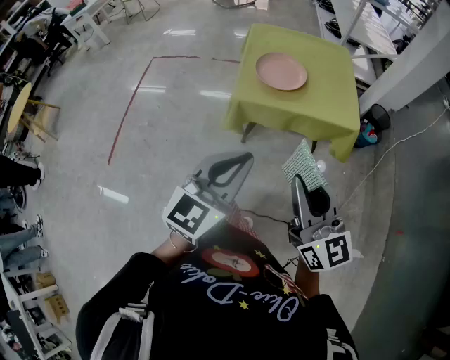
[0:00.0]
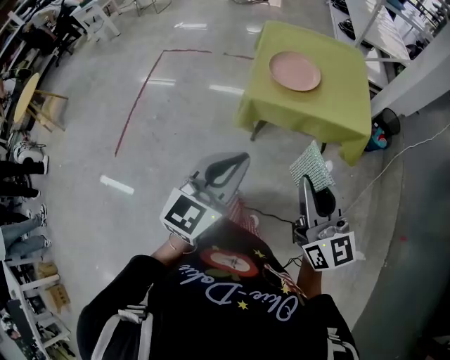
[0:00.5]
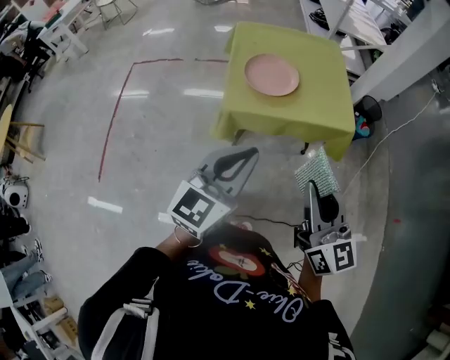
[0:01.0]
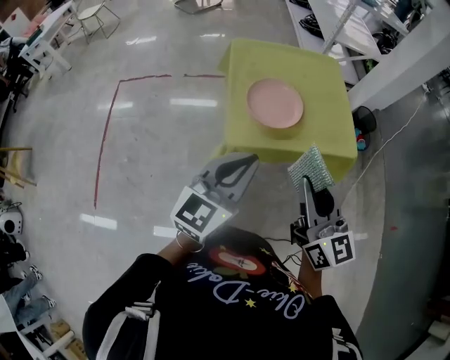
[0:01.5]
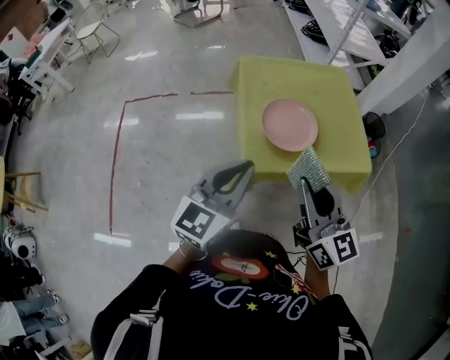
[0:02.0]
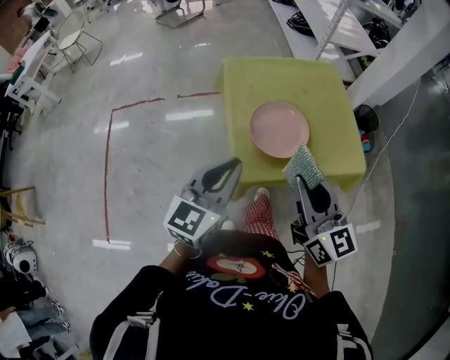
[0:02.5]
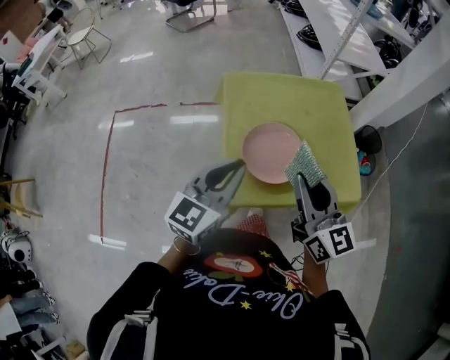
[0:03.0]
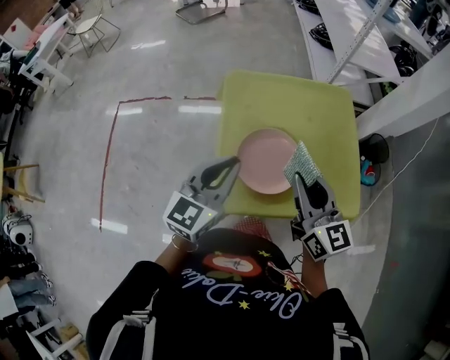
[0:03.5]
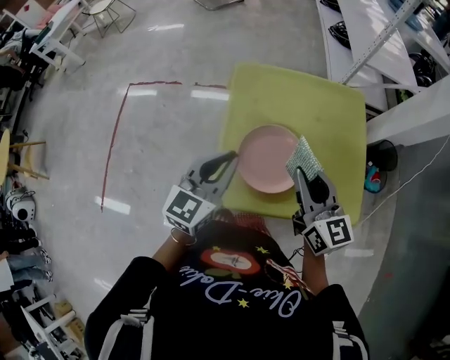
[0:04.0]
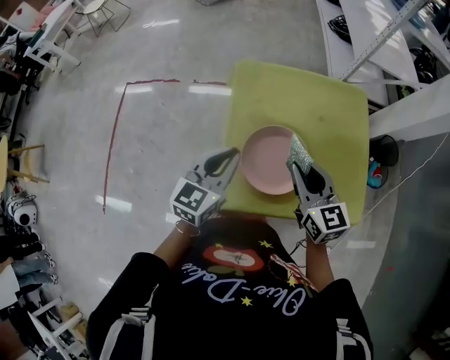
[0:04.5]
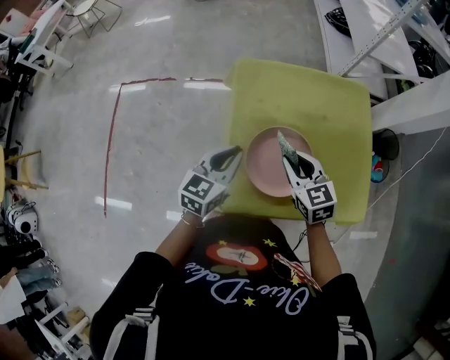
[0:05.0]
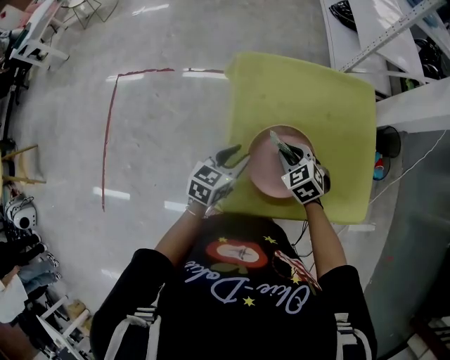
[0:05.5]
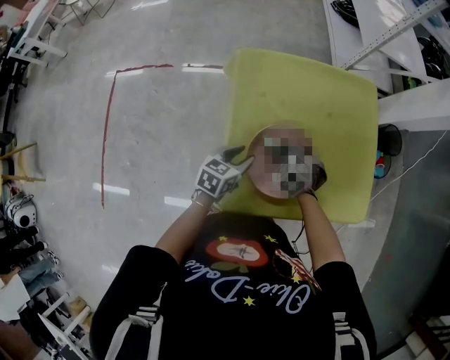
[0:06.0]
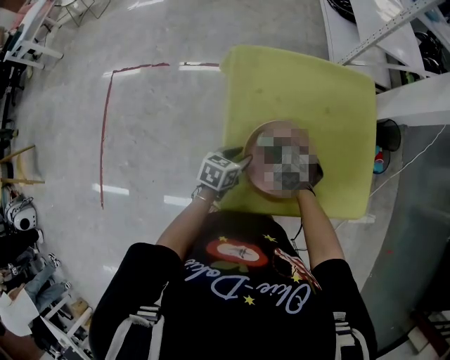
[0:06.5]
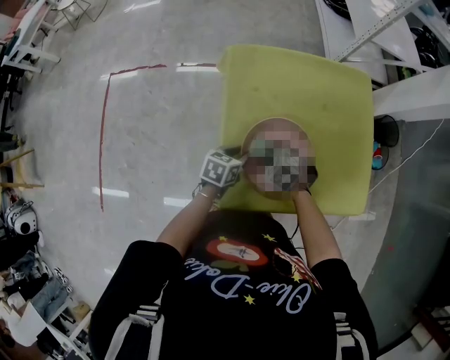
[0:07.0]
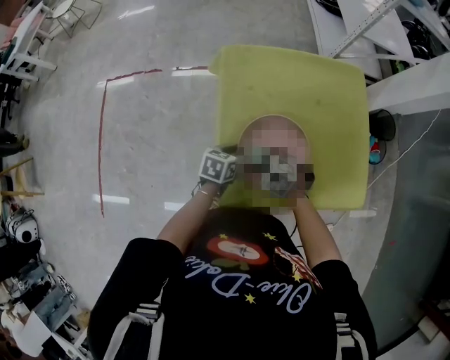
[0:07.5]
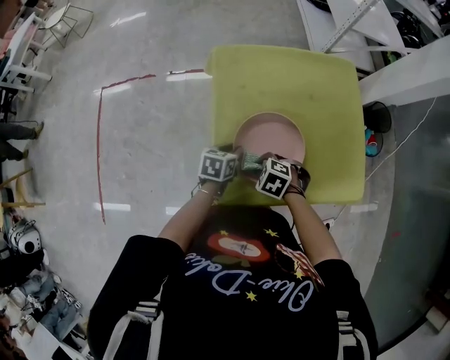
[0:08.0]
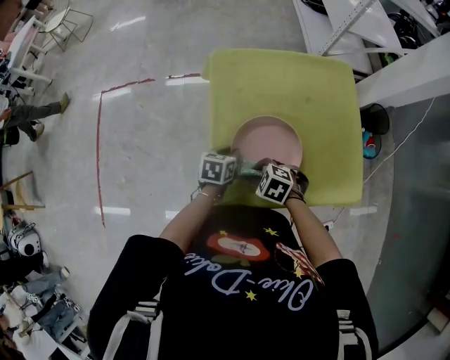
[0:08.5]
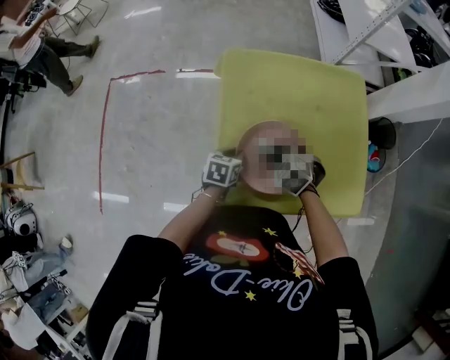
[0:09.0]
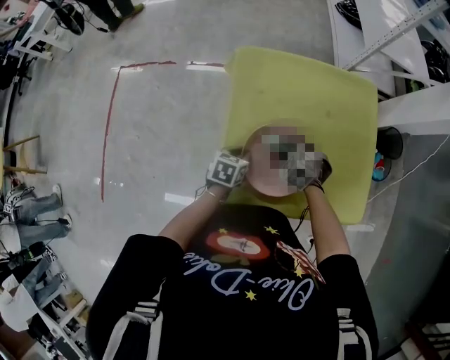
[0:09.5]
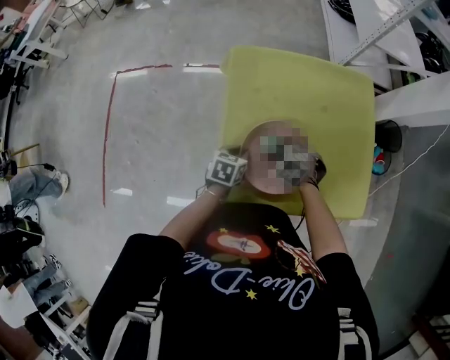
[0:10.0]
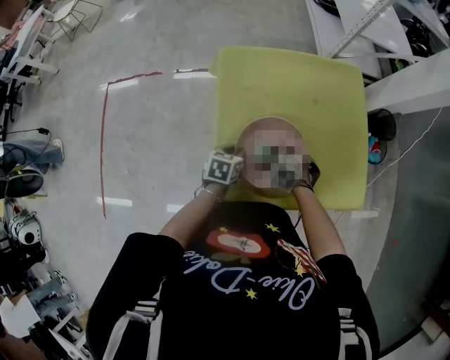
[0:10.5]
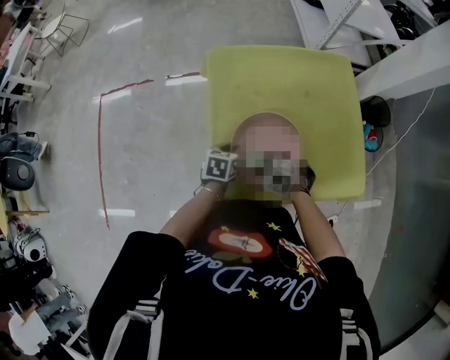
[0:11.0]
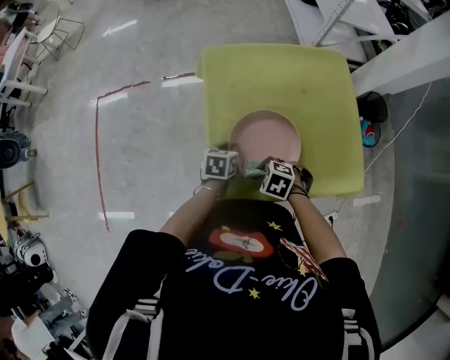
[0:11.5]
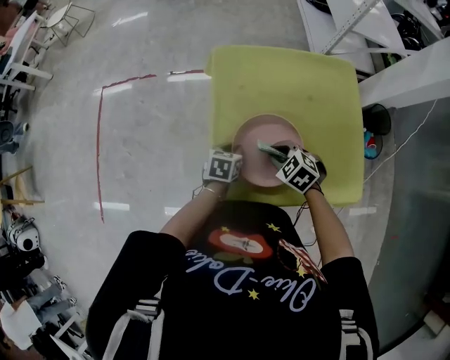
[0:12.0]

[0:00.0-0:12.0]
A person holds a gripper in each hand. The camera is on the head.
0:00.0 to 0:02.0: The grippers both shift forward and to the left by about 35 cm.
0:02.0 to 0:04.0: The right gripper heads forward and to the right, covering roughly 30 cm; the left gripper shifts some 20 cm forward.
0:04.0 to 0:06.0: Both grippers move downward, roughly 25 cm. The left gripper changes its angle by about 40 degrees, and opens up. Meanwhile the right gripper points its fingers roughly 60 degrees further downward.
0:06.0 to 0:08.0: The right gripper changes place by approximately 10 cm. Meanwhile the left gripper shifts some 5 cm downward.
0:08.0 to 0:10.0: The right gripper shifts by approximately 10 cm.

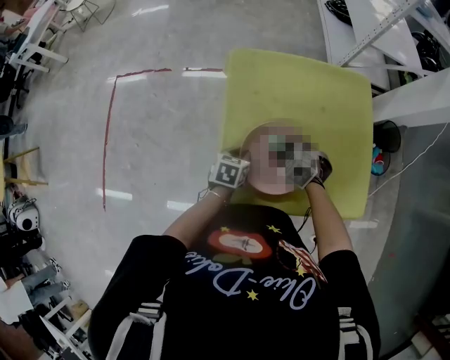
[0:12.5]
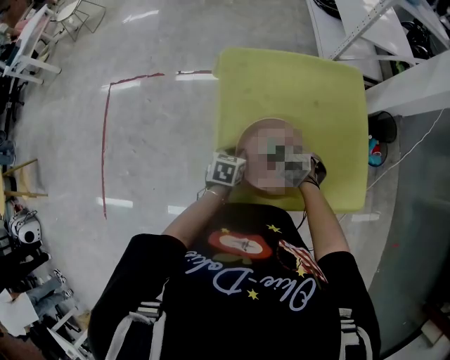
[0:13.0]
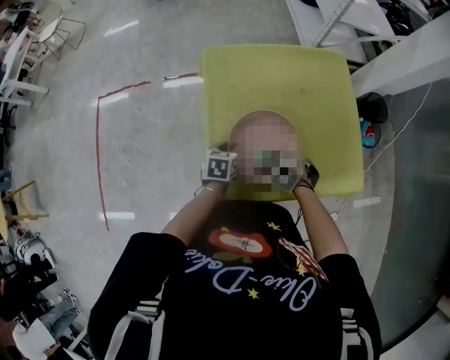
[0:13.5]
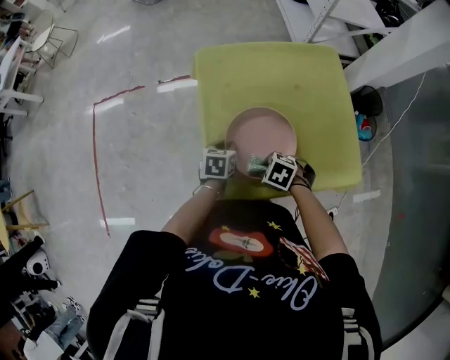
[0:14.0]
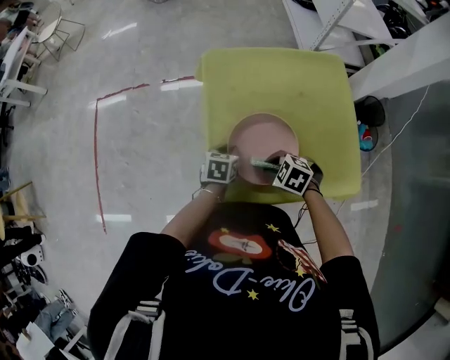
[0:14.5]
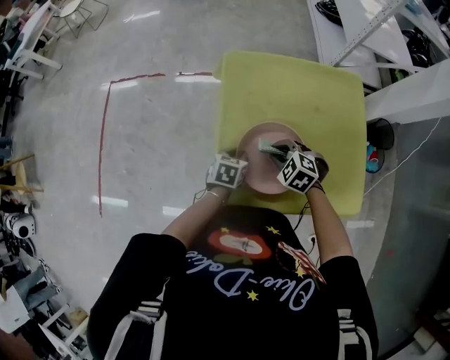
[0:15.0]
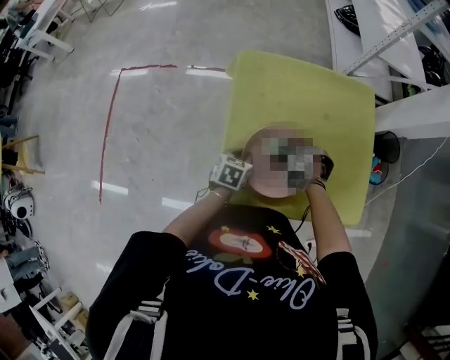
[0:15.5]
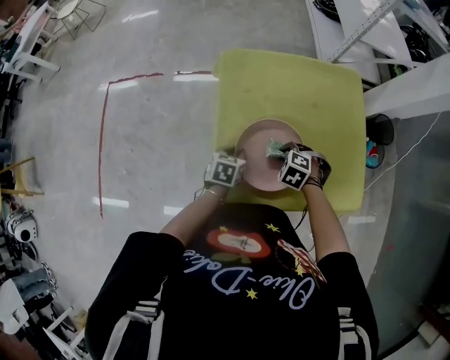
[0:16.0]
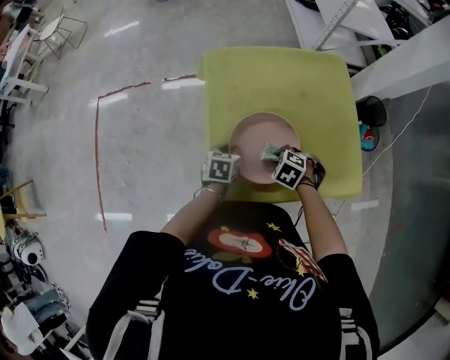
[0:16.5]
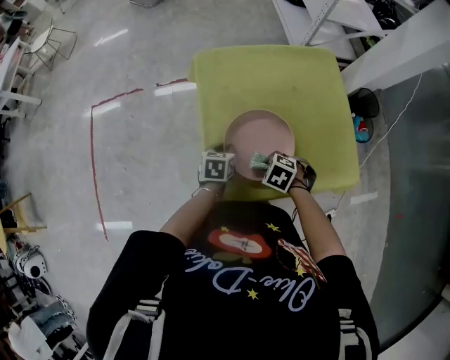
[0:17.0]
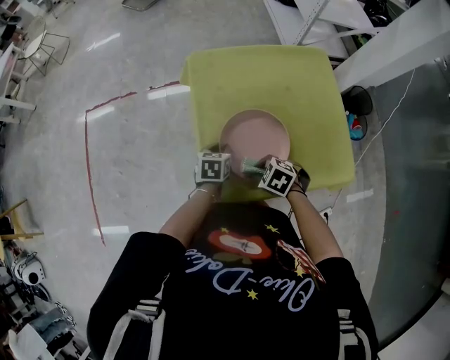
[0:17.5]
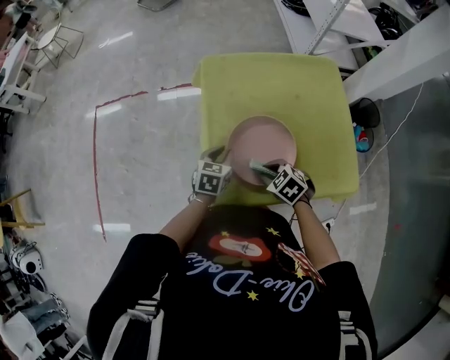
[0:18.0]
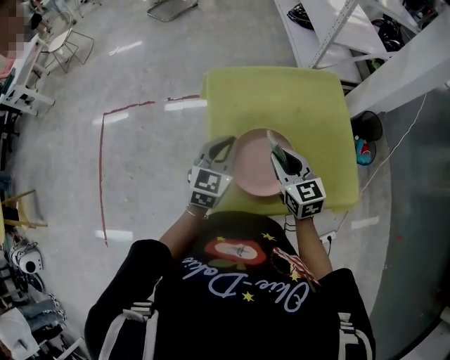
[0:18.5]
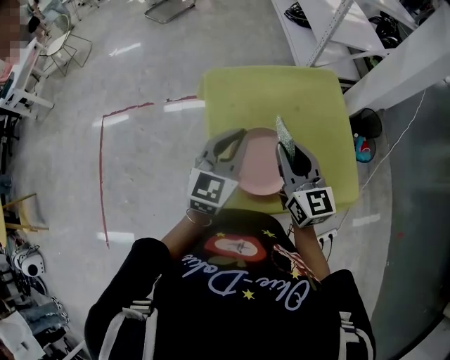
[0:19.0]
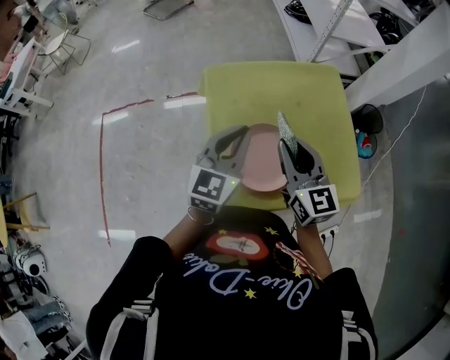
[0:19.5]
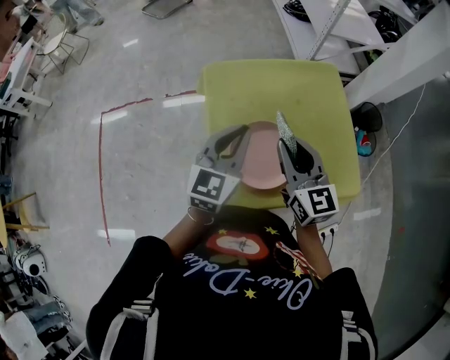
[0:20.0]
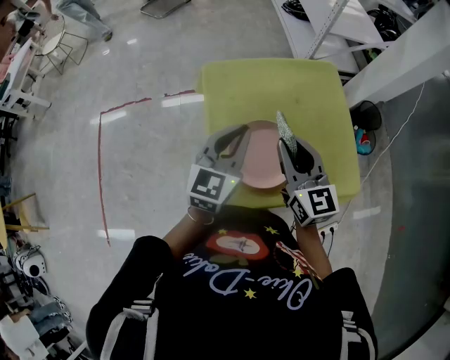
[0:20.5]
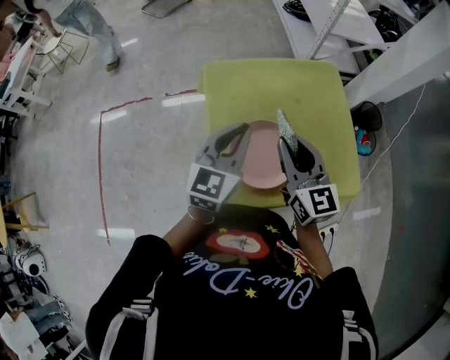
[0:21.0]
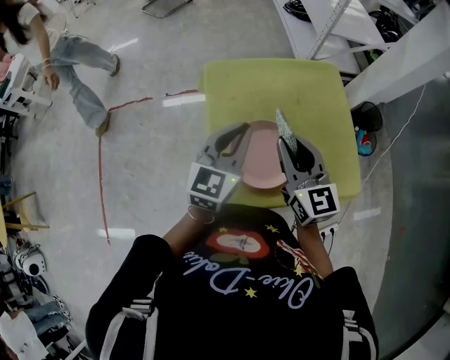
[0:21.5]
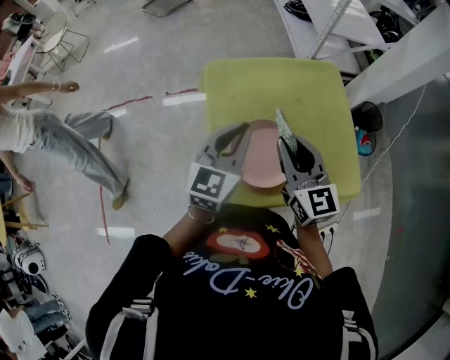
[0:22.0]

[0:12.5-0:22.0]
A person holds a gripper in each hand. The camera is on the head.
0:12.5 to 0:14.5: The right gripper ends up some 10 cm from where it was.
0:16.5 to 0:18.0: The right gripper changes place by some 5 cm, and swivels about 20 degrees.
0:18.0 to 0:20.0: The grippers both shift upward by approximately 25 cm. The right gripper angles its fingers upward, by approximately 50 degrees. Meanwhile the left gripper tilts its fingers roughly 30 degrees upward.
0:20.0 to 0:22.0: The two grippers keep their place.

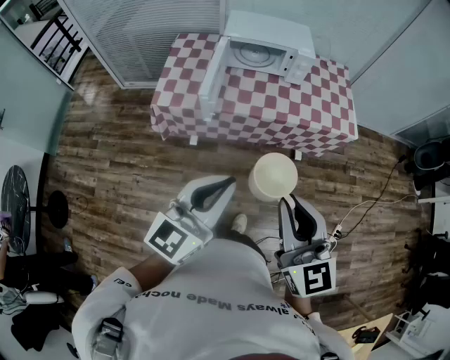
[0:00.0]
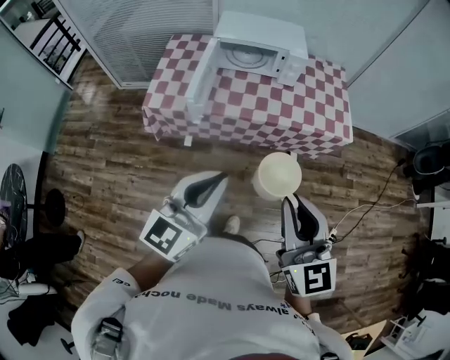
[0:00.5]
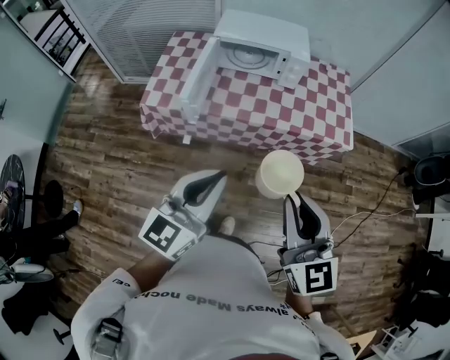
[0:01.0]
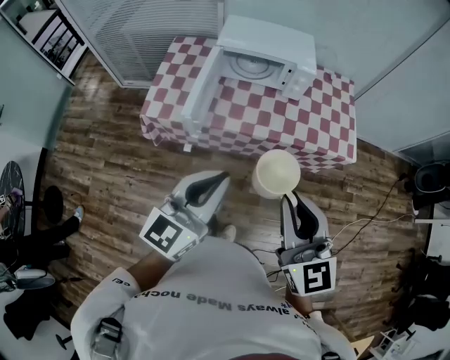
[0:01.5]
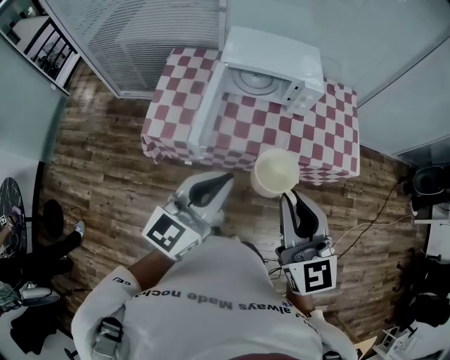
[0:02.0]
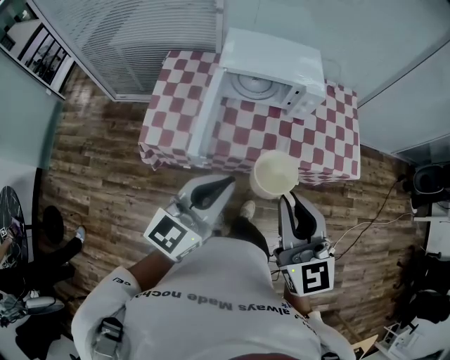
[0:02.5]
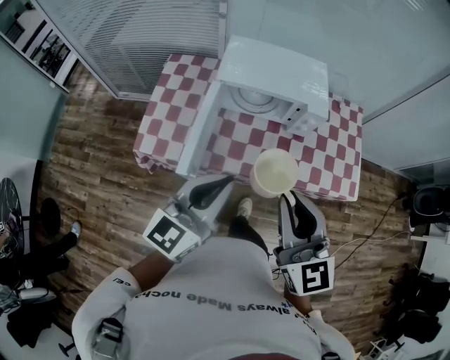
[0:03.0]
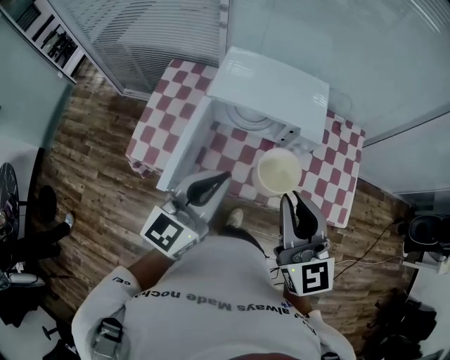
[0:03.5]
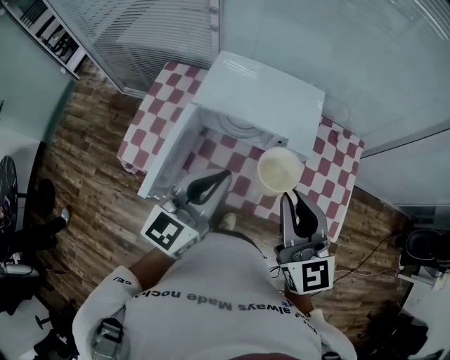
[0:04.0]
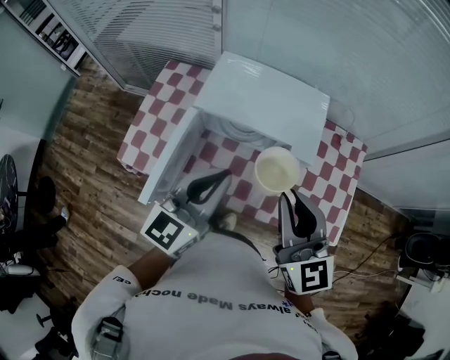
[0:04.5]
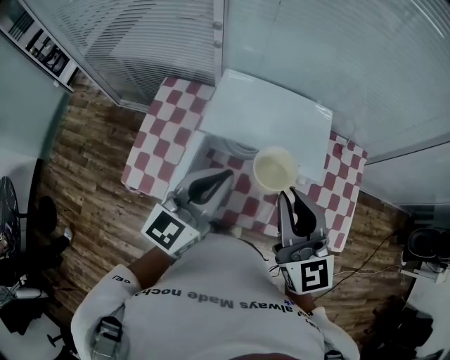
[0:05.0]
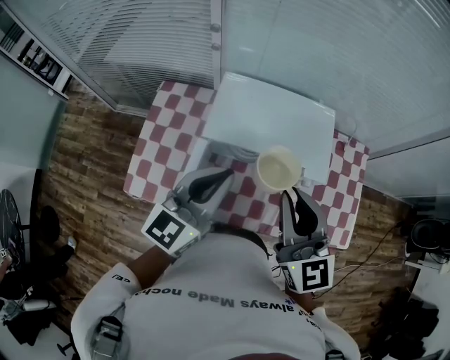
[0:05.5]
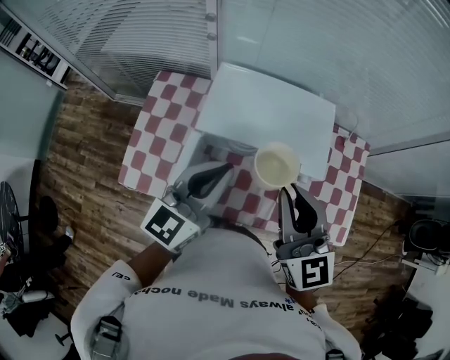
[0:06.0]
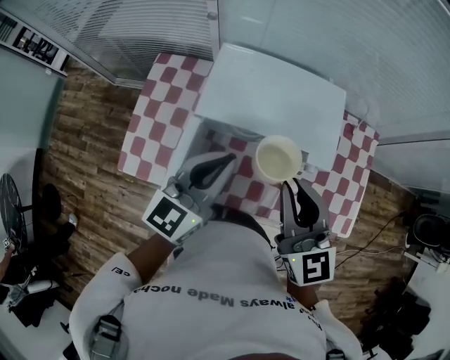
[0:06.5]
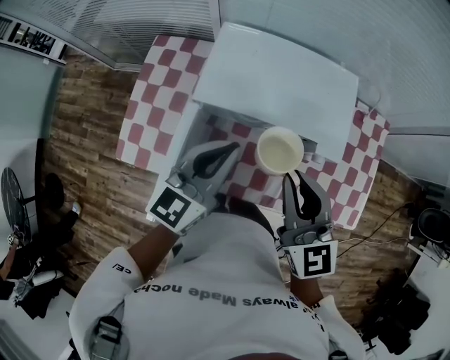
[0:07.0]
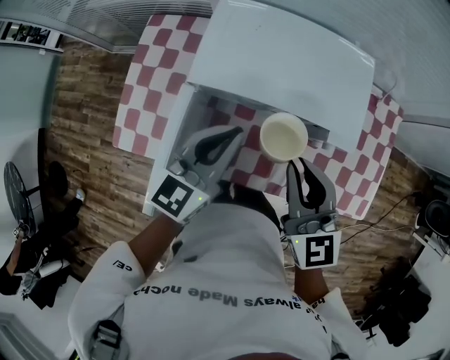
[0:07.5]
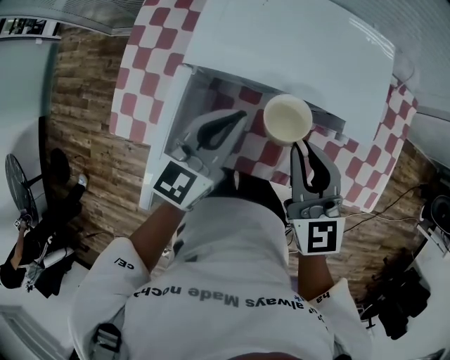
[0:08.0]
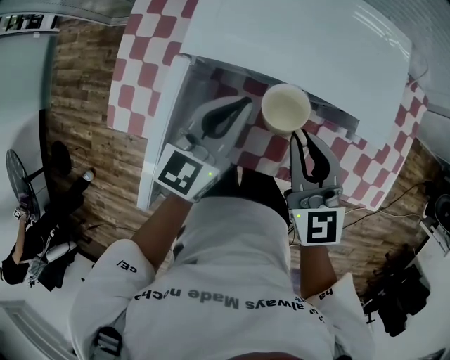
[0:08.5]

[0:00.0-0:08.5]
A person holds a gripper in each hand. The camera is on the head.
0:00.0 to 0:02.0: Both grippers travel together forward, roughly 25 cm.
0:02.0 to 0:04.0: The grippers both shift forward by some 30 cm.
0:04.0 to 0:06.5: Both grippers travel together forward and to the left, roughly 15 cm.
0:06.5 to 0:08.5: Both grippers travel together downward, approximately 20 cm.
